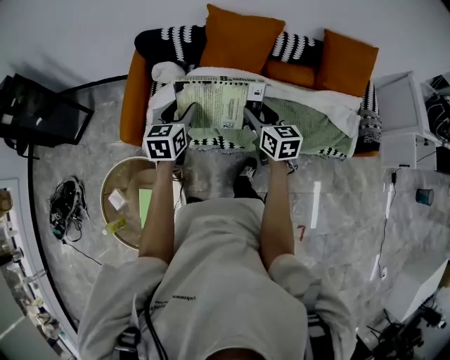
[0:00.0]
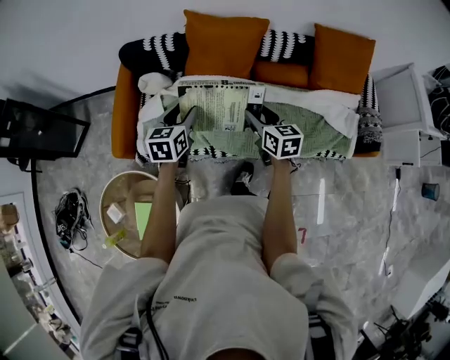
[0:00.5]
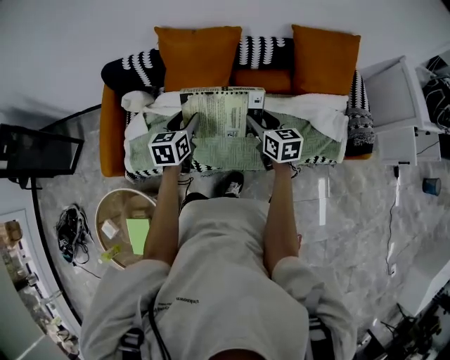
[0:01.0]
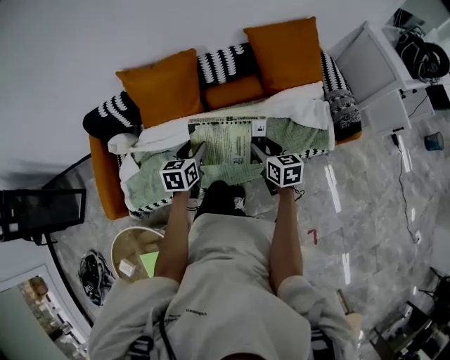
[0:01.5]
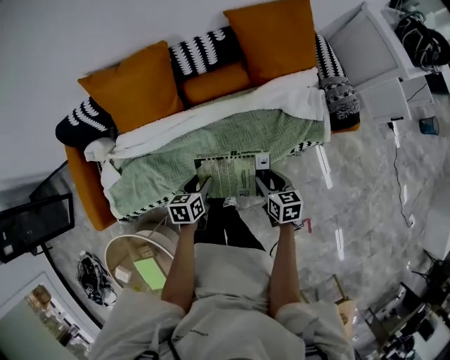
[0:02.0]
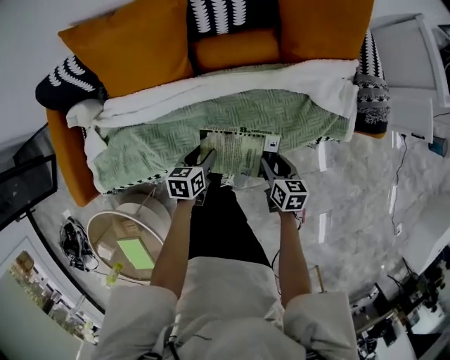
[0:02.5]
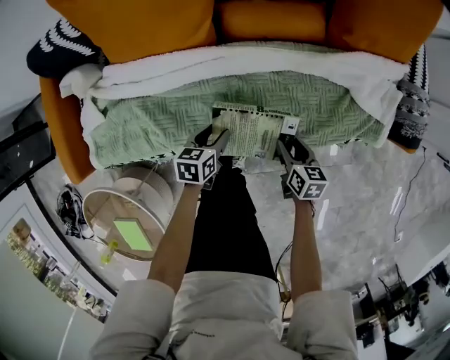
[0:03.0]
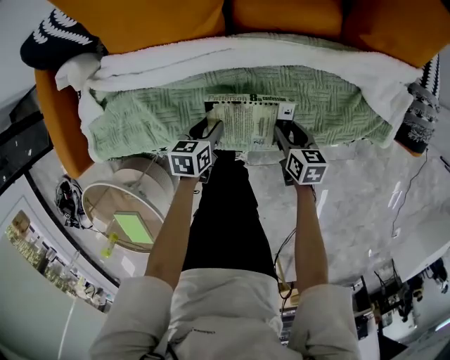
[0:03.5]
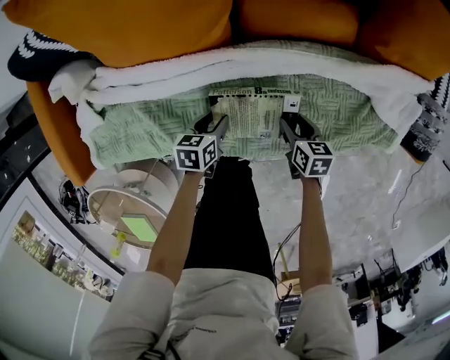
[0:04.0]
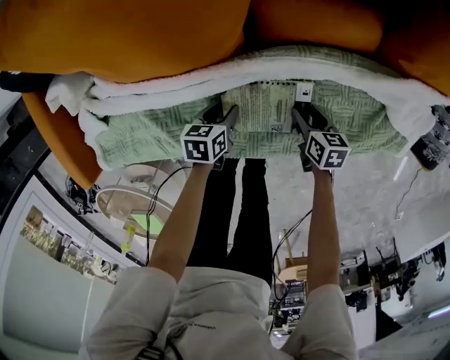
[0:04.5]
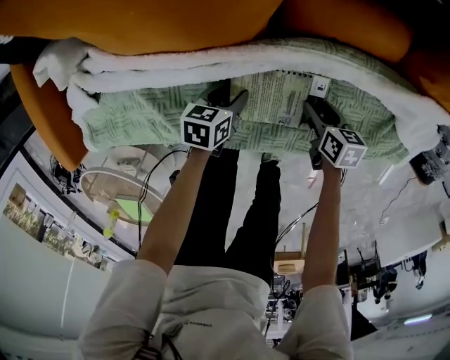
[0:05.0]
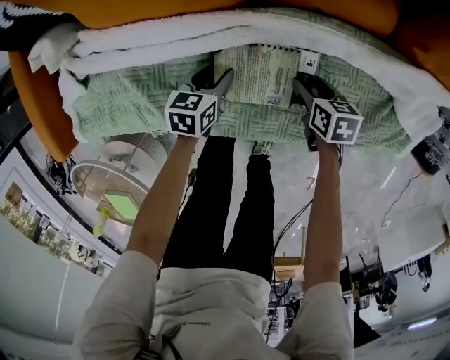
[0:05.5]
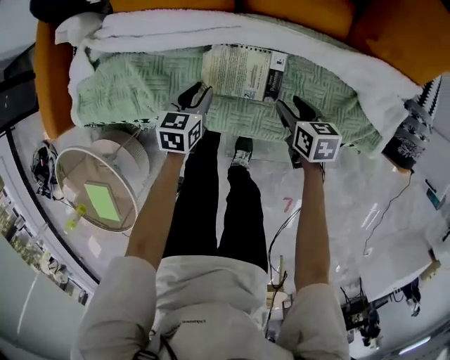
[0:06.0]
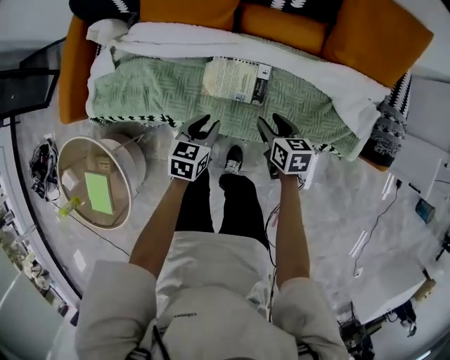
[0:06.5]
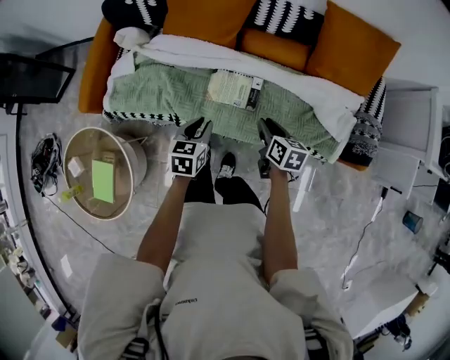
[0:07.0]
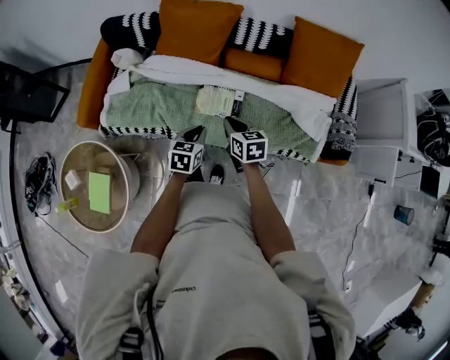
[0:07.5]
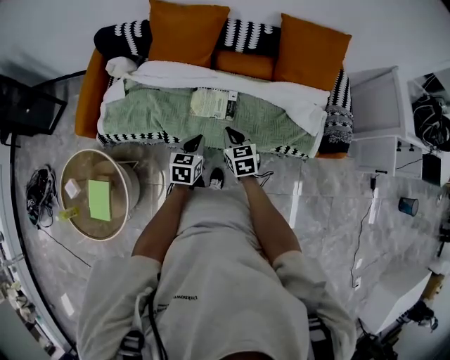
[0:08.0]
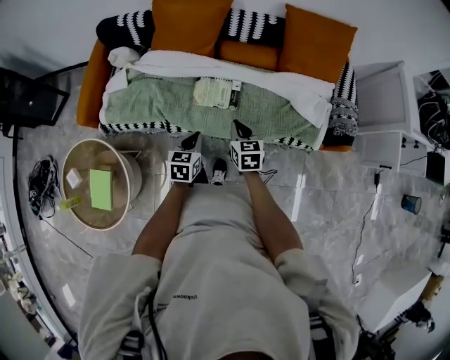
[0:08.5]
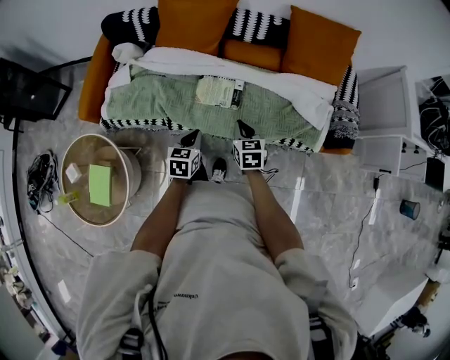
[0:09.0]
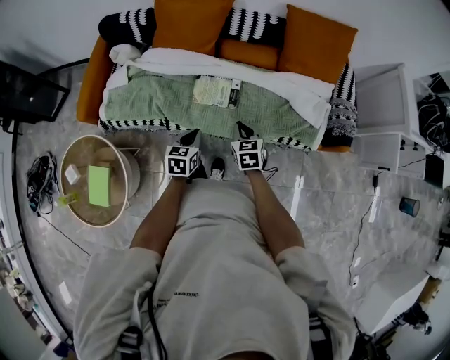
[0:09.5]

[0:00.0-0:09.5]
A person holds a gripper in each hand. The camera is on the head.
0:00.0 to 0:02.0: The left gripper changes place by roughly 40 cm, and changes its angle by some 30 degrees. Meanwhile the right gripper ends up roughly 40 cm from where it was, and turns by approximately 30 degrees.
0:02.0 to 0:04.0: The right gripper goes some 30 cm downward and forward, while the left gripper goes about 30 cm downward.
0:04.0 to 0:05.5: The right gripper changes place by about 5 cm; the left gripper ends up some 5 cm from where it was.
0:05.5 to 0:07.5: Both grippers travel together upward and backward, roughly 40 cm. The left gripper rotates about 20 degrees, and closes, while the right gripper changes its angle by about 30 degrees, and closes up.
0:07.5 to 0:09.5: The right gripper heads backward and to the right, covering some 10 cm. The left gripper is displaced backward by about 5 cm.

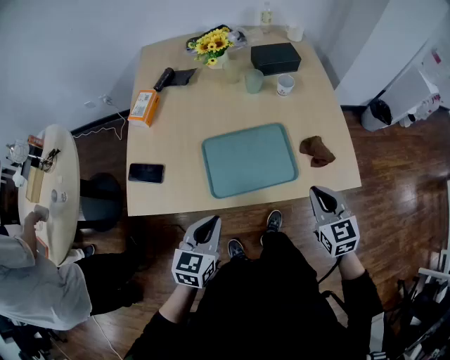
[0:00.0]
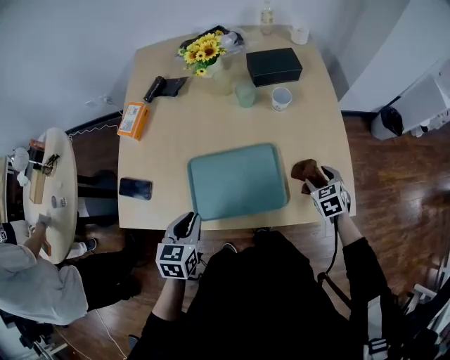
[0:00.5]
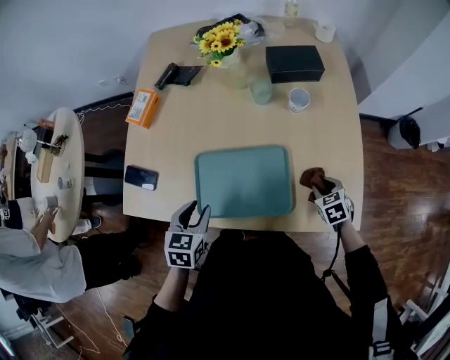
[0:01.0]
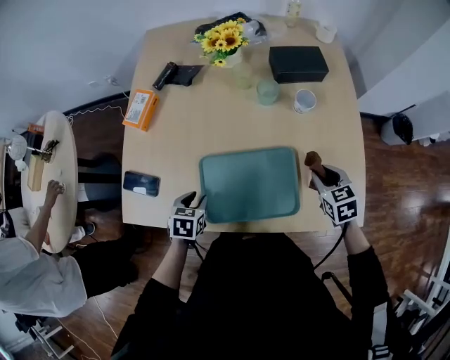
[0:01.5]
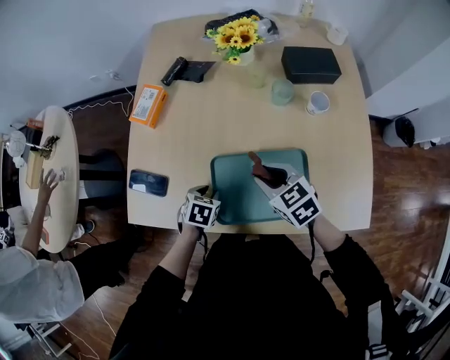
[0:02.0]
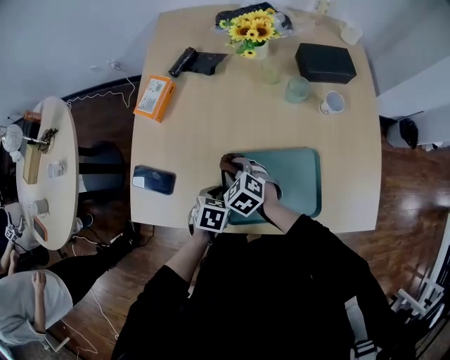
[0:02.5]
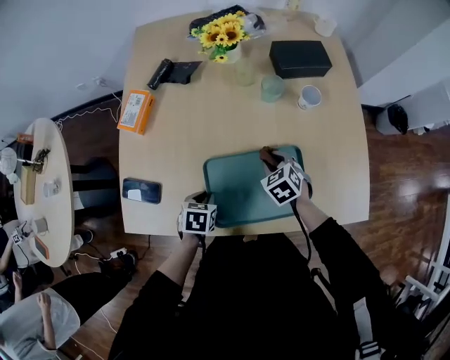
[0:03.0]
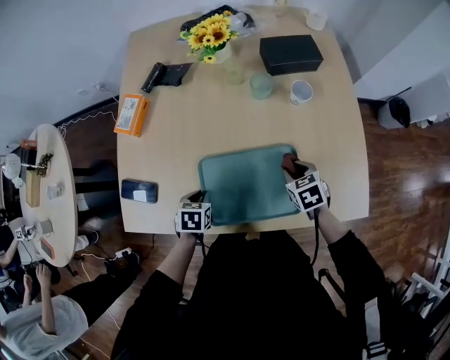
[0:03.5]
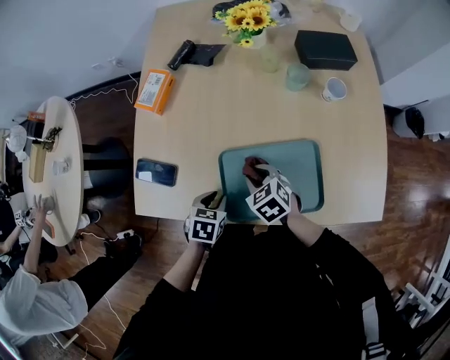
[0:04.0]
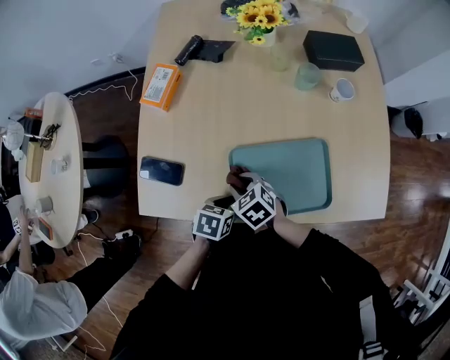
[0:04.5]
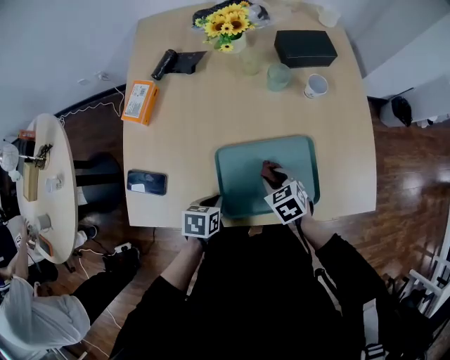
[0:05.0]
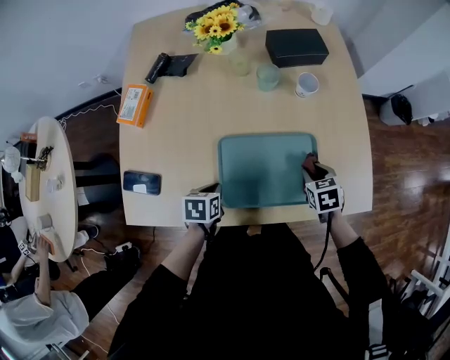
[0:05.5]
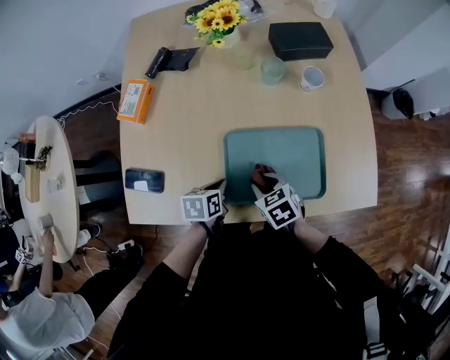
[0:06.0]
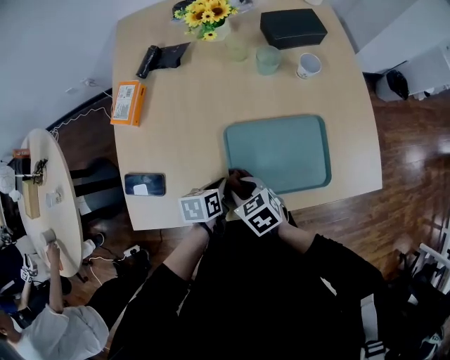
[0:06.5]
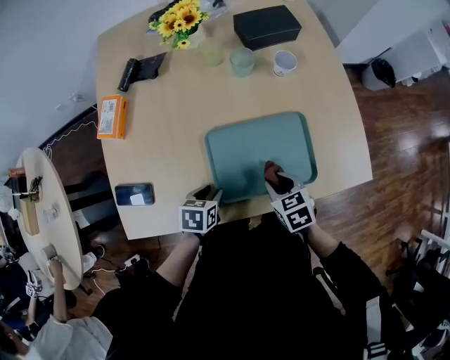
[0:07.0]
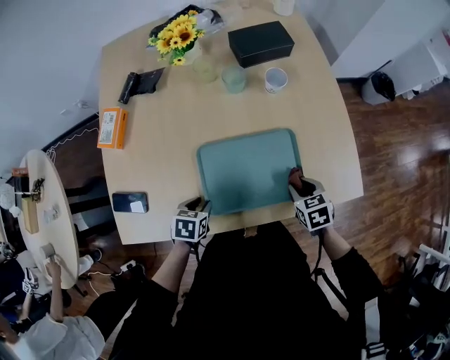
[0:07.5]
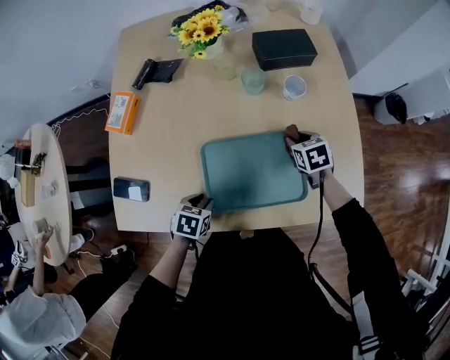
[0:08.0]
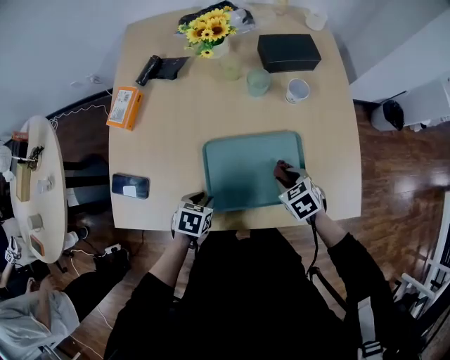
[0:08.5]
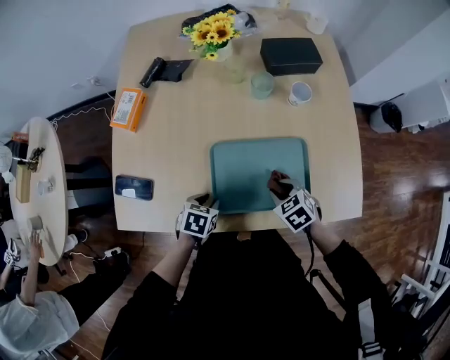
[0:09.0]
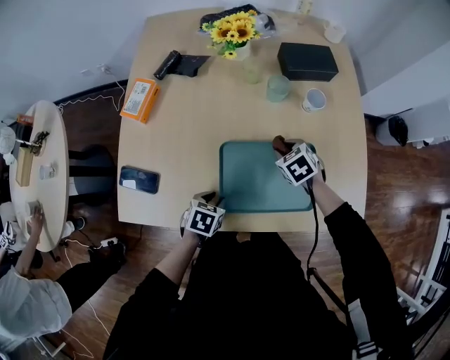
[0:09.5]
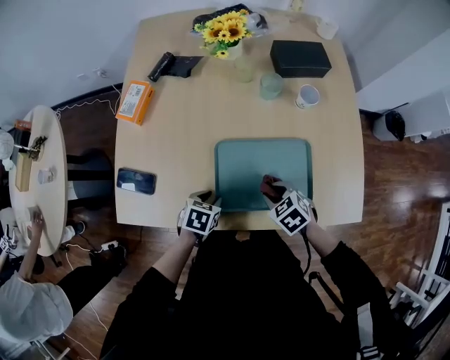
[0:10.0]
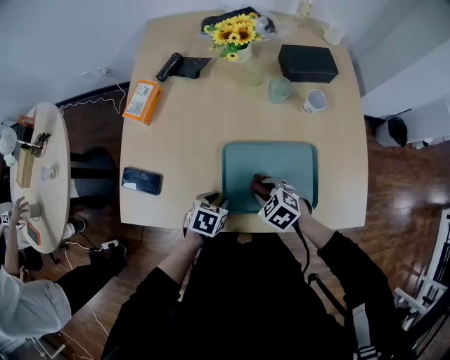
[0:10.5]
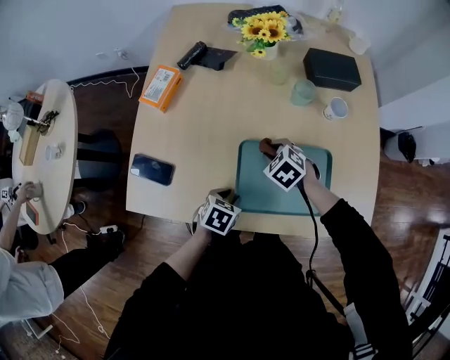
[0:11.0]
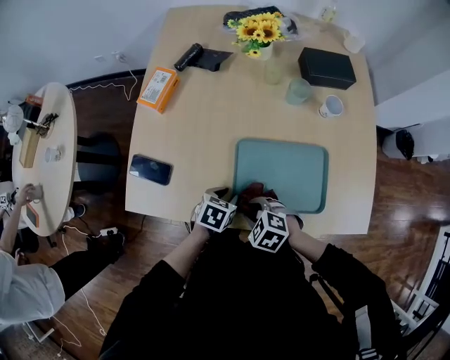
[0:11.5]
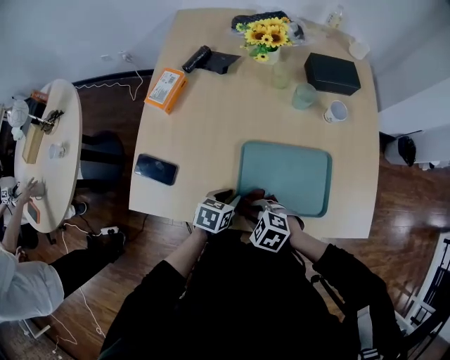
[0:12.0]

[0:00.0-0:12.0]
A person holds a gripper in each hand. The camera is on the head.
0:00.0 to 0:02.0: The right gripper is displaced forward and to the left by approximately 25 cm, swivels about 30 degrees, and opens. Meanwhile the left gripper heads forward and downward, covering about 25 cm, tilts its fingers roughly 40 degrees downward, and opens.
0:02.0 to 0:04.0: The right gripper goes left and right, about 30 cm each way, reversing 2 times. The left gripper moves approximately 5 cm.
0:04.0 to 0:06.0: The left gripper goes about 5 cm to the right, and changes its angle by roughly 20 degrees, while the right gripper moves left and right over some 35 cm, changing direction 2 times.
0:06.0 to 0:08.0: The right gripper travels forward and to the right by some 25 cm. The left gripper changes its angle by about 30 degrees, and opens up.
0:08.0 to 0:10.0: The right gripper goes forward and backward, some 20 cm each way, reversing 2 times, and changes its angle by some 30 degrees.
0:10.0 to 0:12.0: The right gripper shifts by roughly 15 cm, and changes its angle by some 30 degrees.

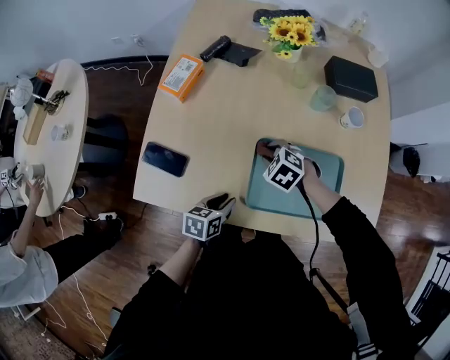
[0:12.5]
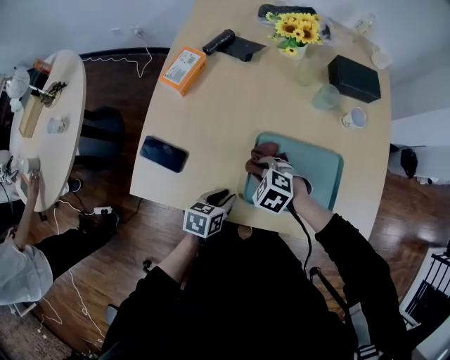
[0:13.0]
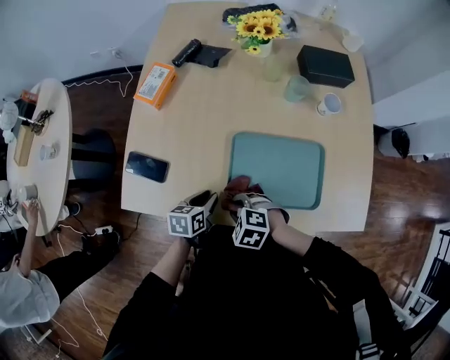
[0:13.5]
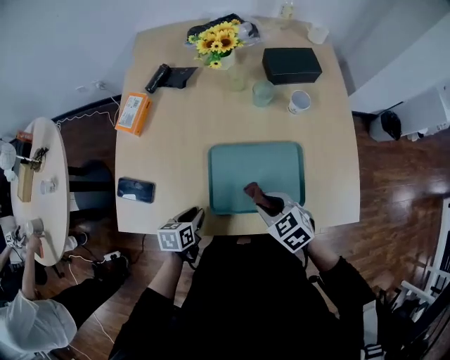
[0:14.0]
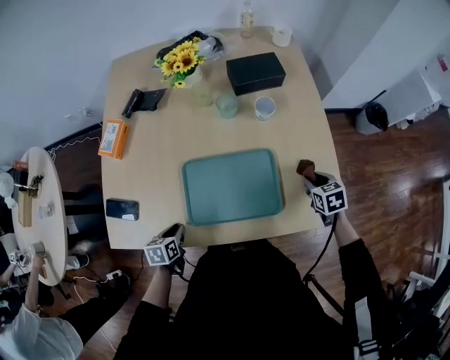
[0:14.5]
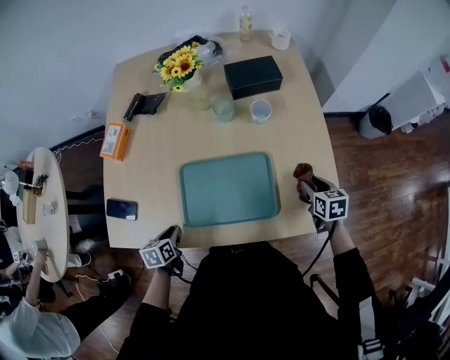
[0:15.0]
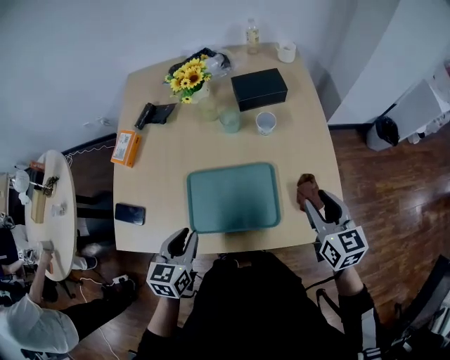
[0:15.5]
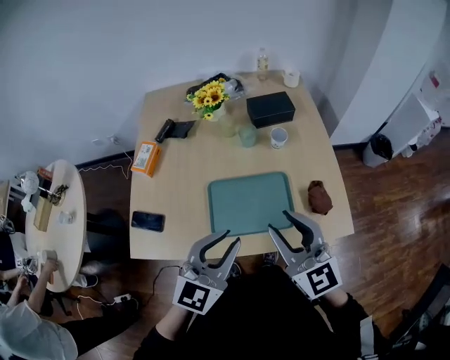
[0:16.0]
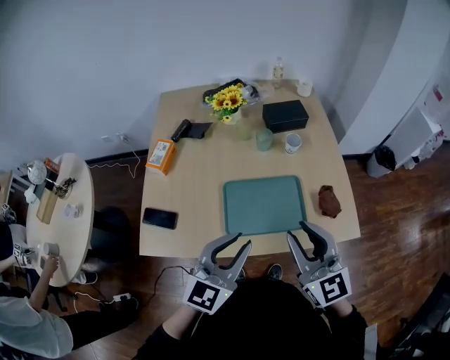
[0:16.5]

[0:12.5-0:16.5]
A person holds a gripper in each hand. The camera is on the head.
0:12.5 to 0:14.5: The right gripper changes place by roughly 40 cm, and twists approximately 60 degrees clockwise, seen from behind.
0:14.5 to 0:16.5: The left gripper moves upward, approximately 35 cm, and points its fingers about 50 degrees further upward. The right gripper shifts roughly 40 cm upward, to the left and backward, and points its fingers some 60 degrees further upward.

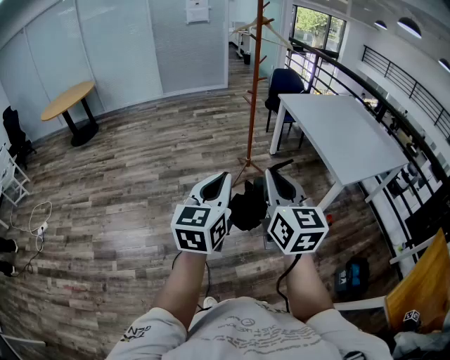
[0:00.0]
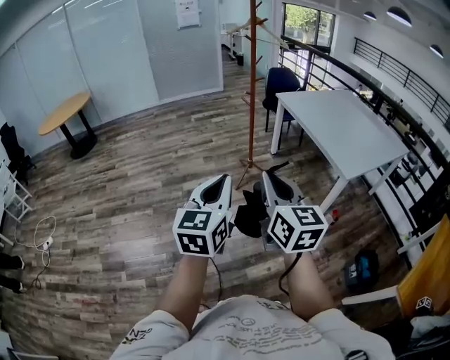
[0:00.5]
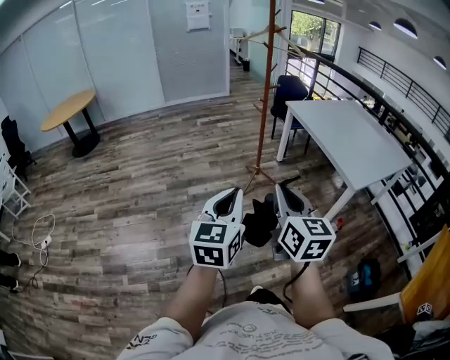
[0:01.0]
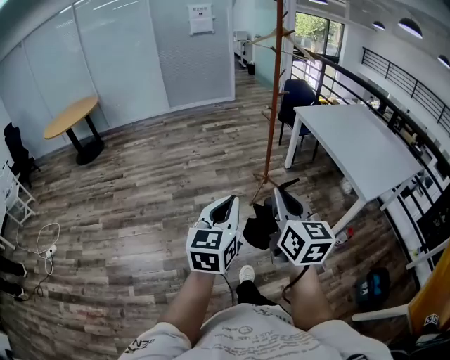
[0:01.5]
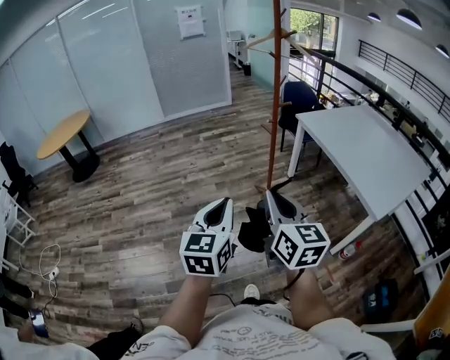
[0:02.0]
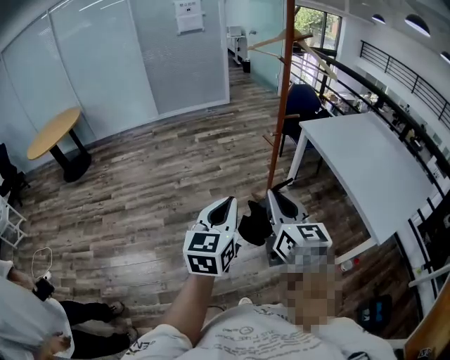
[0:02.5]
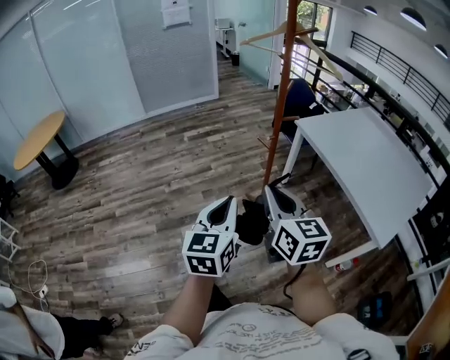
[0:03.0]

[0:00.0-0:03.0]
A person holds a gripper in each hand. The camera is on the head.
0:00.0 to 0:01.5: Both grippers move to the left and forward, some 15 cm.
0:01.5 to 0:03.0: Both grippers are carried forward, about 40 cm.
